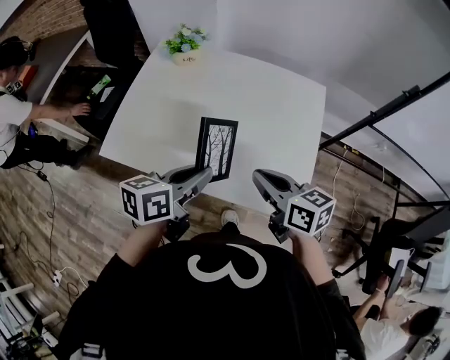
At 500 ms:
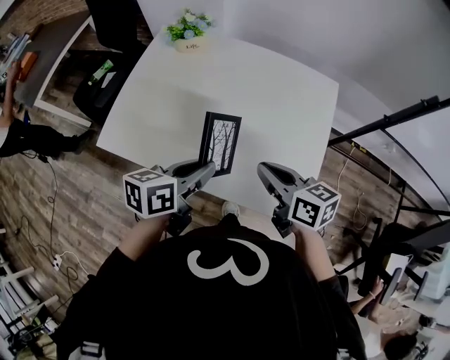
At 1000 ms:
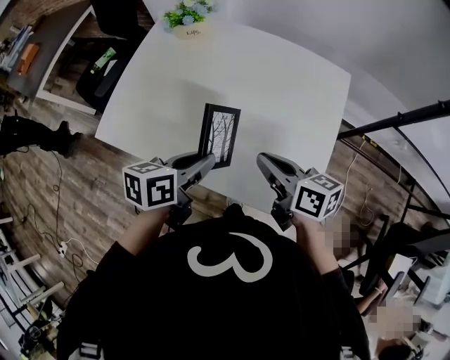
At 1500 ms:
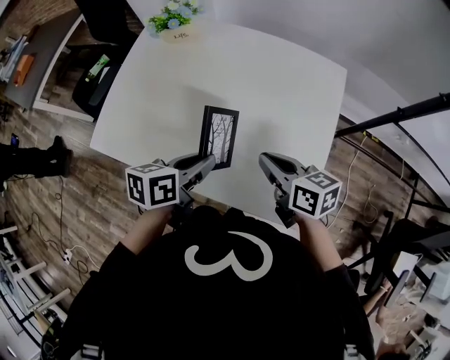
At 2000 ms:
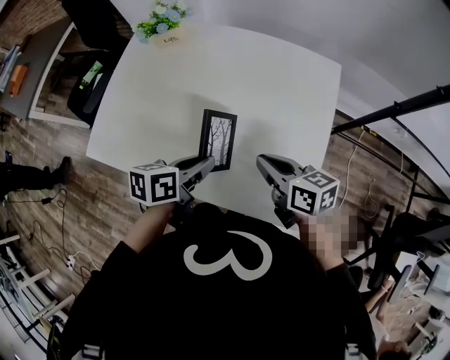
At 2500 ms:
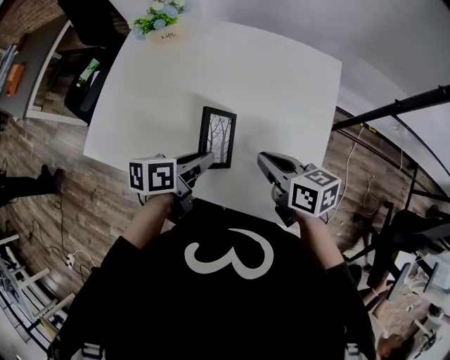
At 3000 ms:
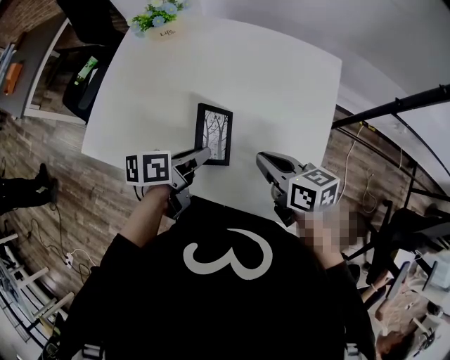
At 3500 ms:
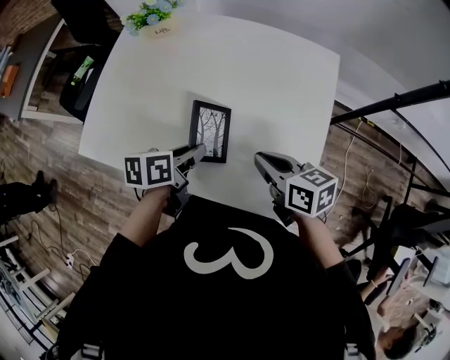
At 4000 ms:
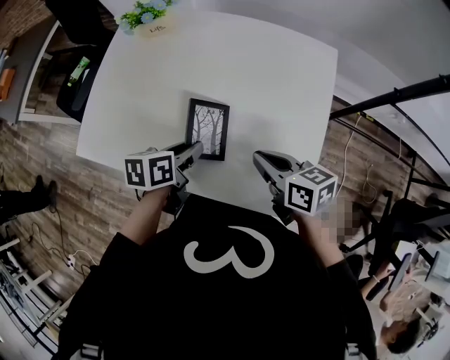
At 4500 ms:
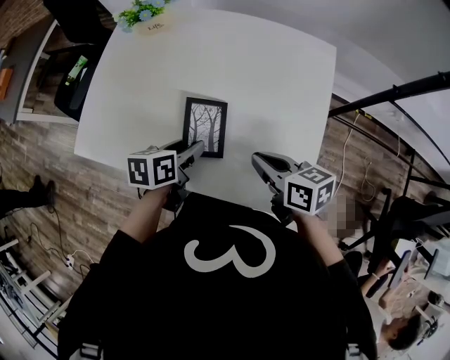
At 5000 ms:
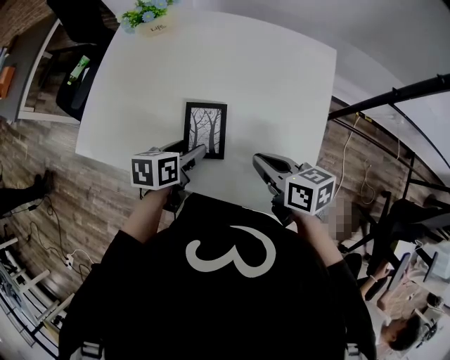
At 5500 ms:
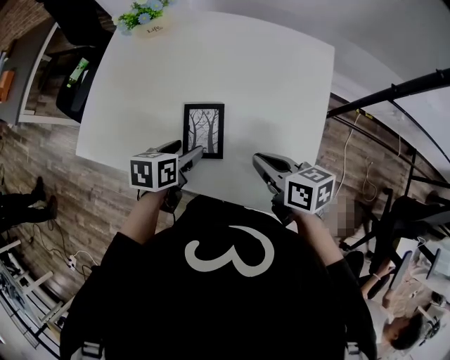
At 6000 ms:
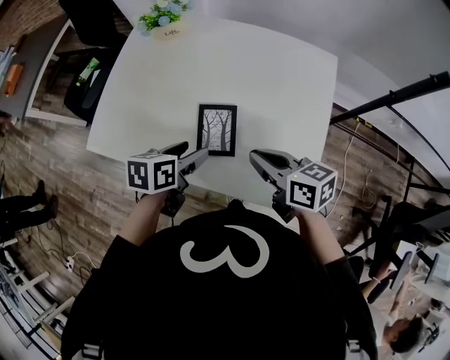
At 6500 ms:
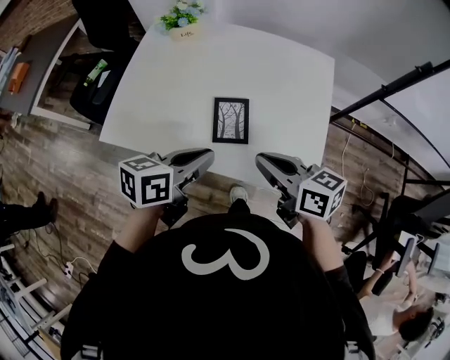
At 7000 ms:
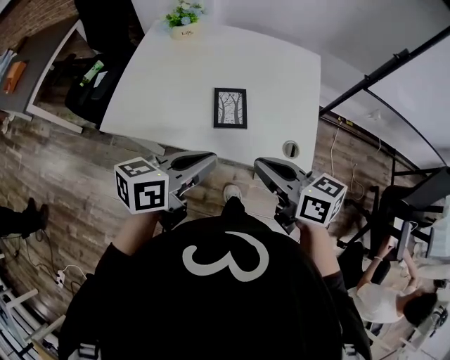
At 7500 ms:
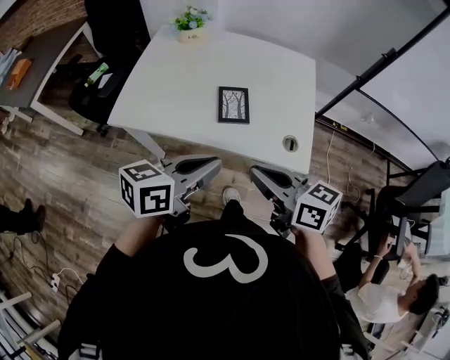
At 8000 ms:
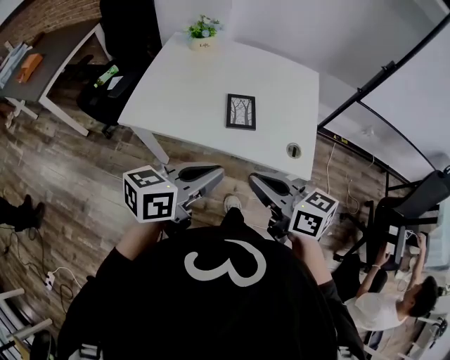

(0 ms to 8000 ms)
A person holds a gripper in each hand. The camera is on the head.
0 ms - 2000 ms: Both grippers travel together downward and forward, about 10 cm.
2000 ms - 4000 ms: The grippers move only a little.
4000 ms - 6000 ms: The right gripper moves about 5 cm. Meanwhile the left gripper opens.
6000 ms - 8000 ms: The right gripper is displaced backward, upward and to the left by about 30 cm. Meanwhile the left gripper moves backward and upward, roughly 30 cm, angles its fingers upward, by some 30 degrees, and closes its fingers.

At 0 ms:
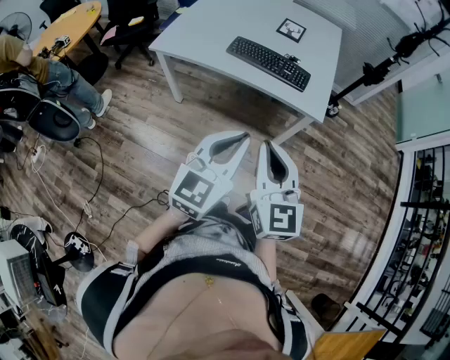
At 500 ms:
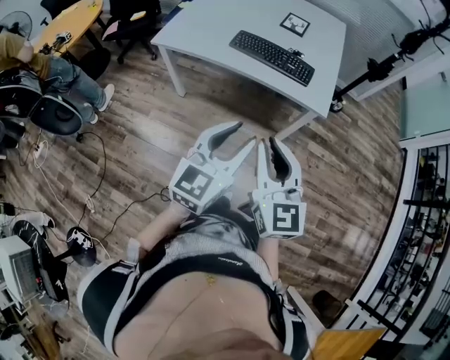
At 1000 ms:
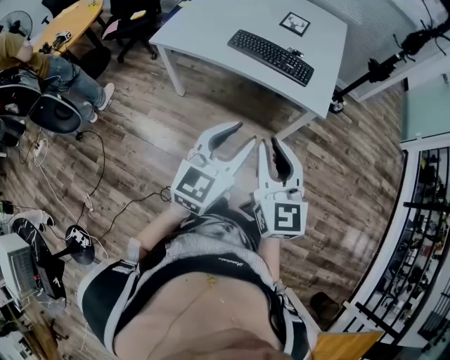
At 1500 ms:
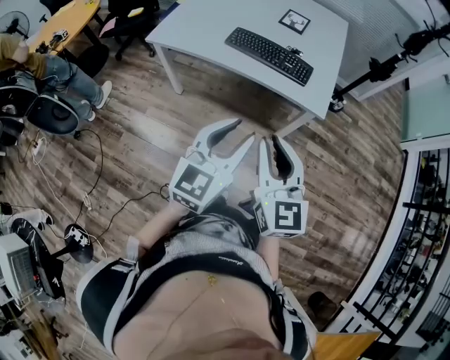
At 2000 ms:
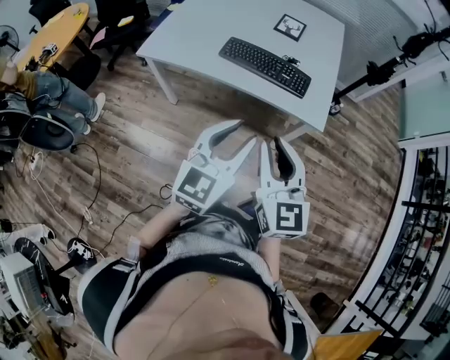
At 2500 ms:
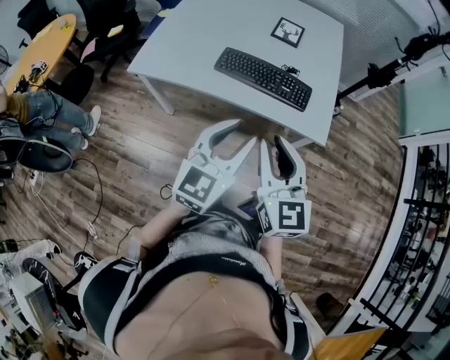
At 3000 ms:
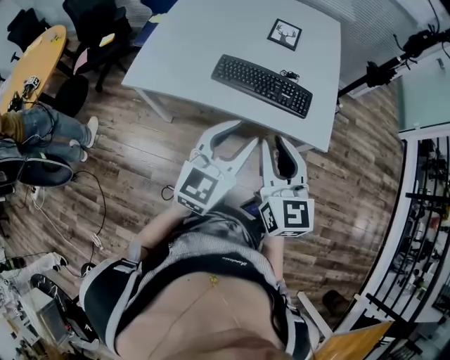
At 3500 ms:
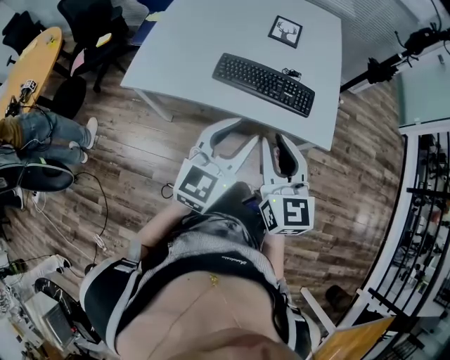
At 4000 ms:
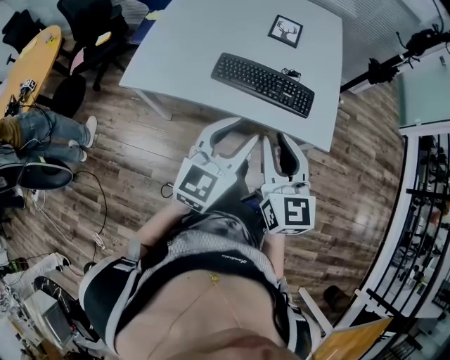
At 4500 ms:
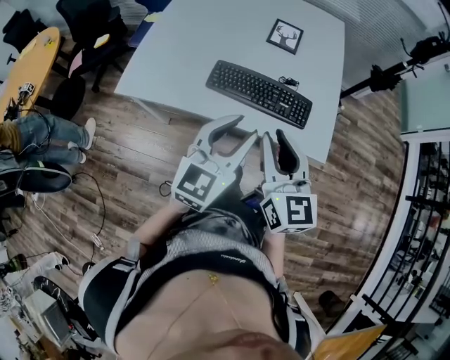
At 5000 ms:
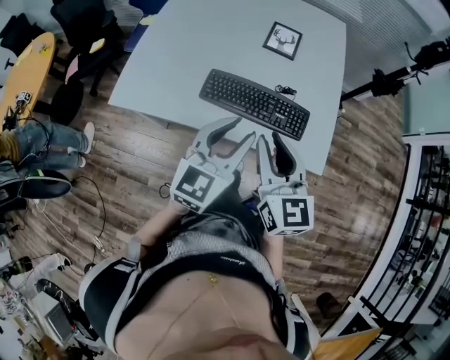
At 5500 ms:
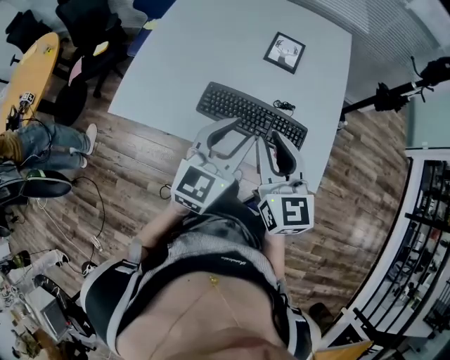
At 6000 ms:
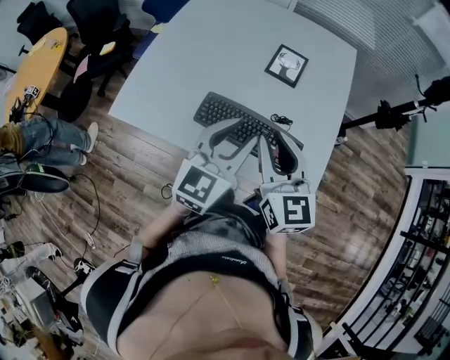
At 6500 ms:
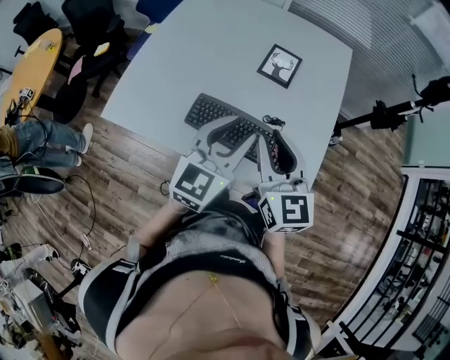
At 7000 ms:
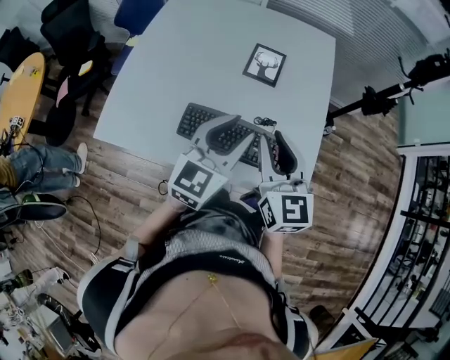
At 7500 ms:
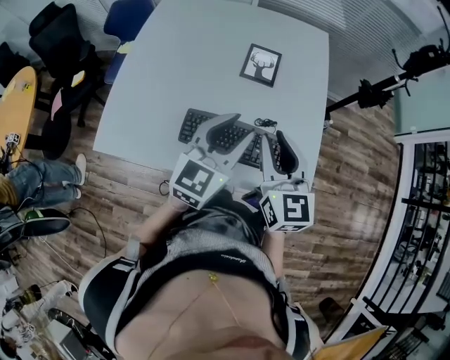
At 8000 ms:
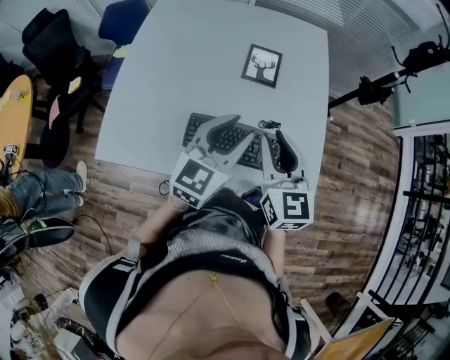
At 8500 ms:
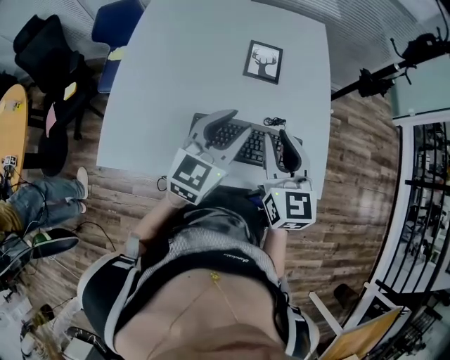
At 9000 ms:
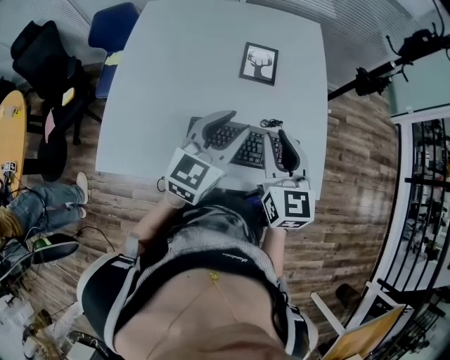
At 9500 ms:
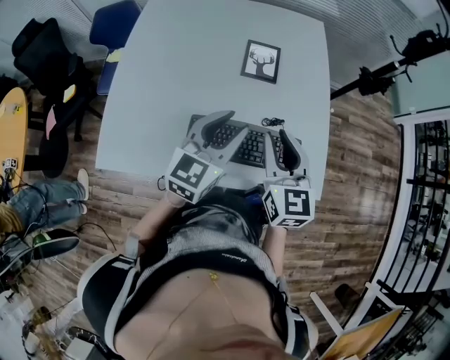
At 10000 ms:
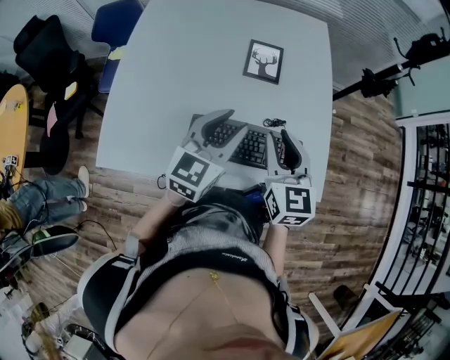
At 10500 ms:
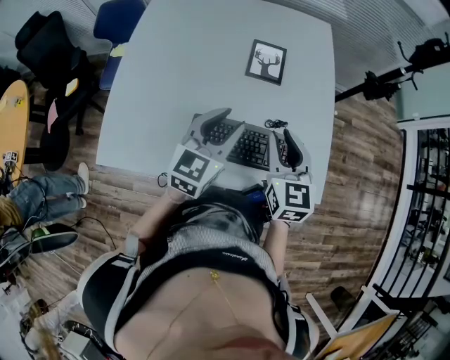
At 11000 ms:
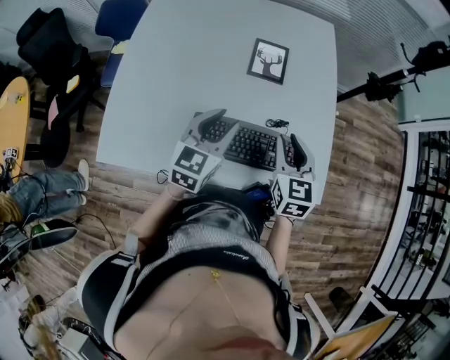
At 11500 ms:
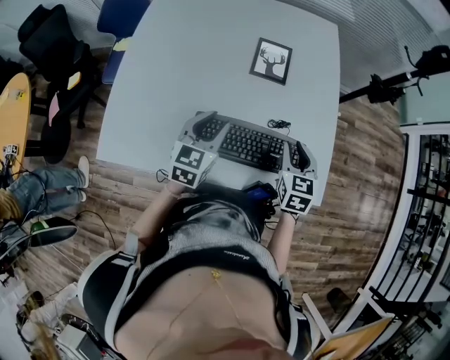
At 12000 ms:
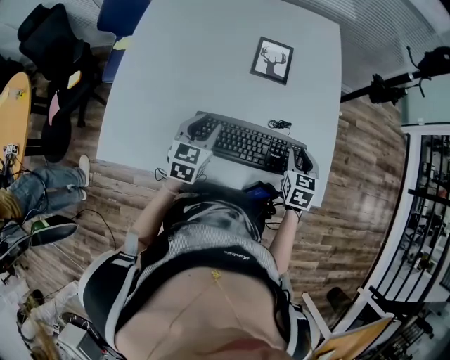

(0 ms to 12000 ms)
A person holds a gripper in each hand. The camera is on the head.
0 ms - 2000 ms: Both grippers move forward, some 10 cm. The left gripper opens.
2000 ms - 4000 ms: The two grippers go approximately 15 cm forward.
4000 ms - 6000 ms: The grippers both shift forward by approximately 25 cm.
6000 ms - 8000 ms: Both grippers travel together forward, some 5 cm.
8000 ms - 10000 ms: The left gripper changes place by approximately 5 cm.
10000 ms - 12000 ms: The left gripper is displaced downward and to the left by some 15 cm, and rotates approximately 20 degrees; the right gripper heads downward and to the right, covering about 20 cm, and turns by some 30 degrees.

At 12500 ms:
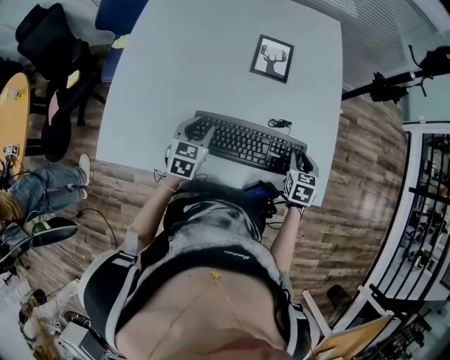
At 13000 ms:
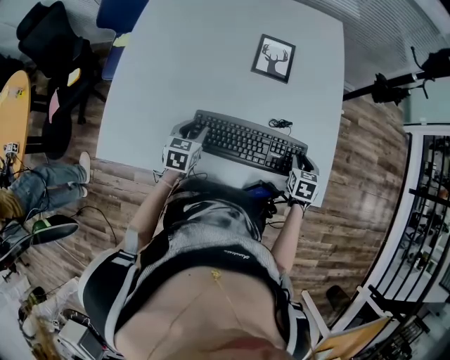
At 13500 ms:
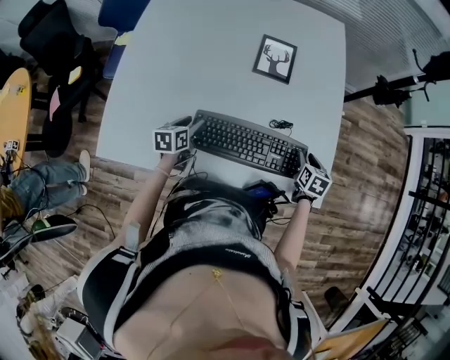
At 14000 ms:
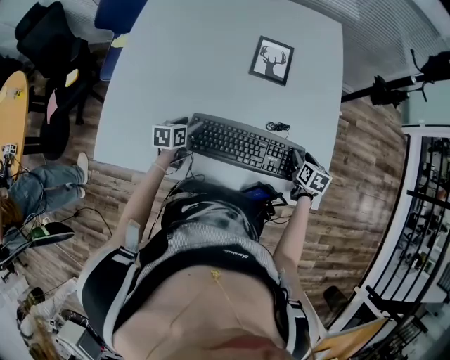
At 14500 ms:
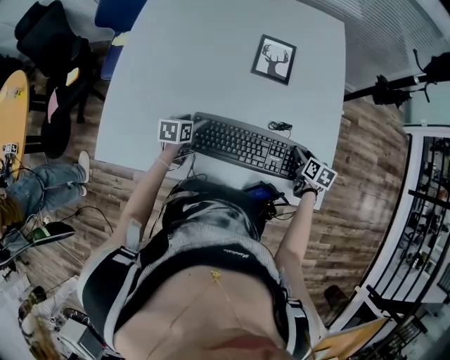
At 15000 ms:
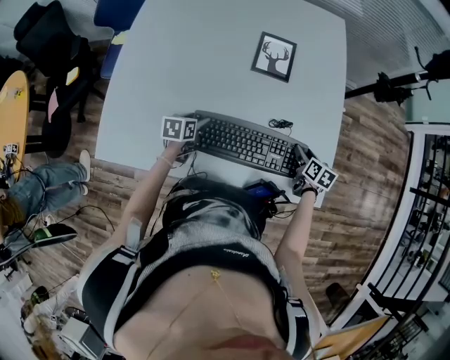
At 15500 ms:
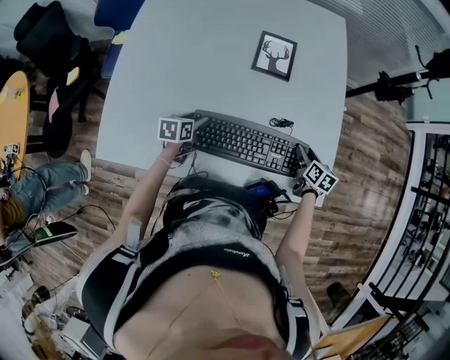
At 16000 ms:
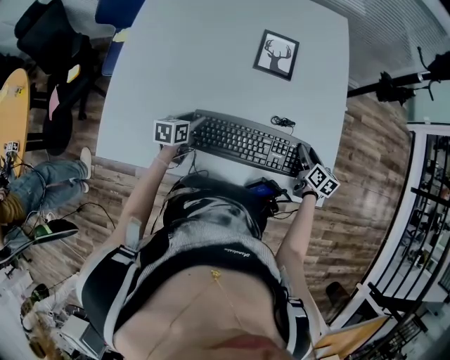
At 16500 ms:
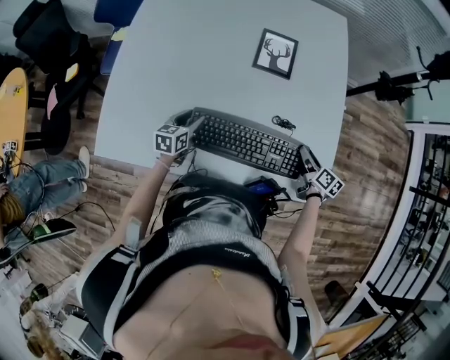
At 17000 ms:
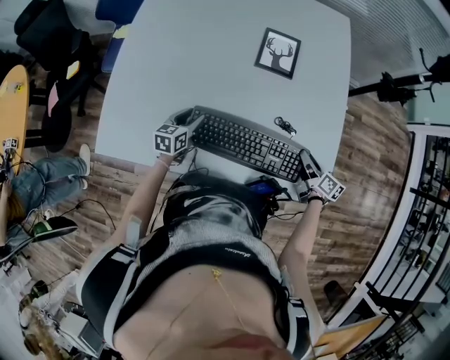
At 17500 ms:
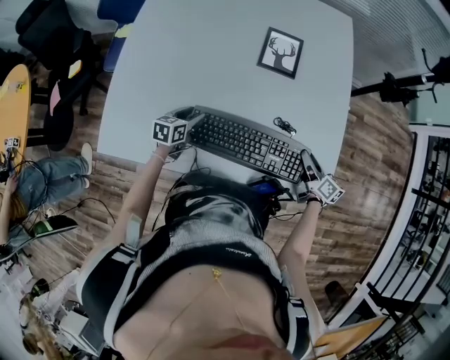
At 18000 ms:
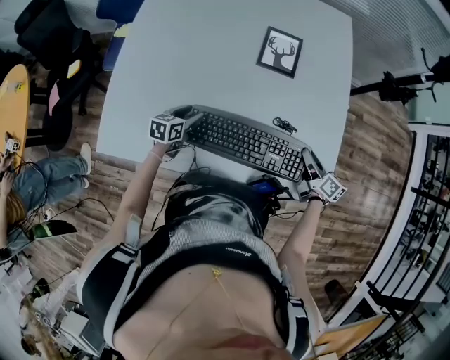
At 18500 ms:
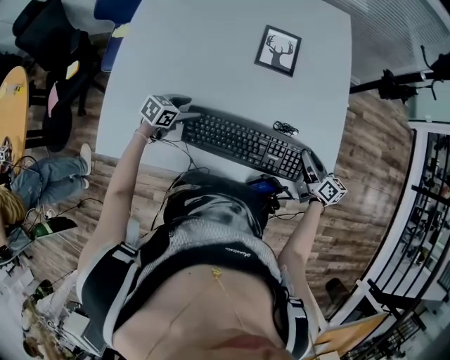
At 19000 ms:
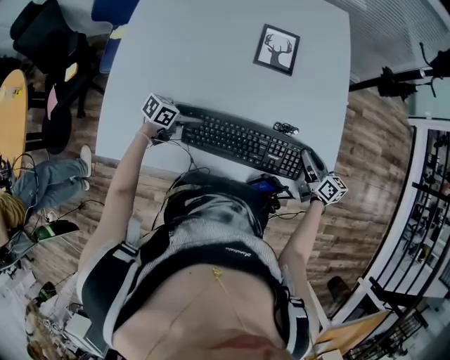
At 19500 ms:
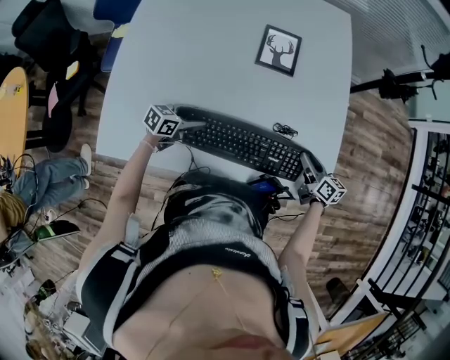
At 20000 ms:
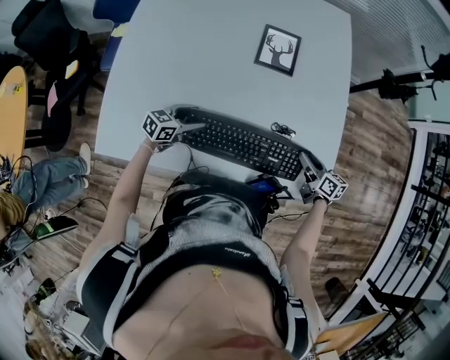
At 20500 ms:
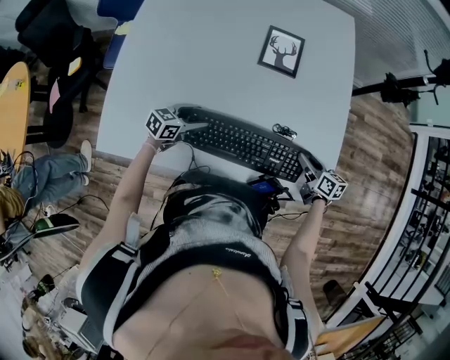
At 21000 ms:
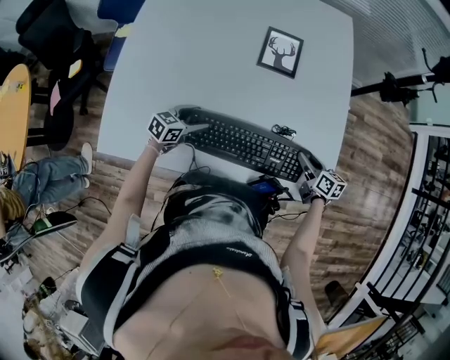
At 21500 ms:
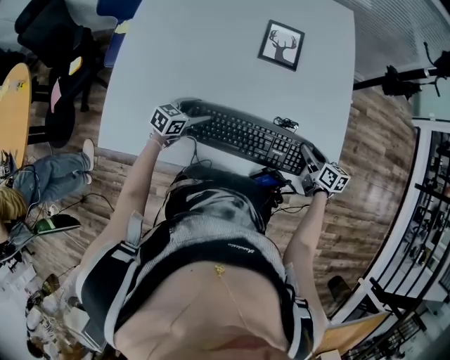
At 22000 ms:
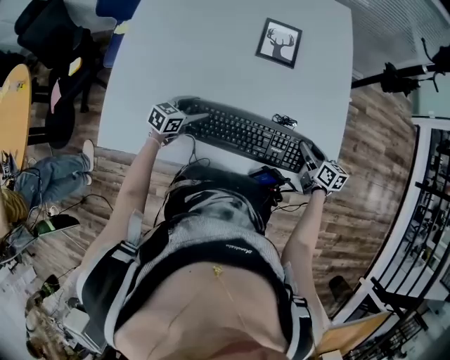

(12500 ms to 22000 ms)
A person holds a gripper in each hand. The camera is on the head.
12500 ms - 14500 ms: The two grippers go approximately 10 cm downward. The right gripper changes its angle by approximately 30 degrees, and opens. The left gripper turns by some 30 degrees, and opens up.
14500 ms - 16500 ms: The right gripper swivels some 30 degrees.
16500 ms - 18000 ms: The right gripper shifts by some 5 cm.
18000 ms - 20000 ms: The left gripper swivels approximately 30 degrees.
20000 ms - 22000 ms: There are only small adjustments of the grippers.
